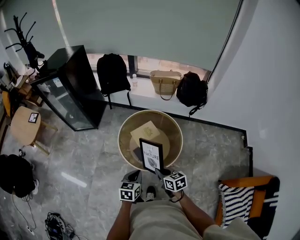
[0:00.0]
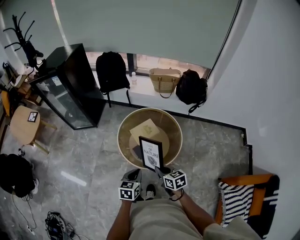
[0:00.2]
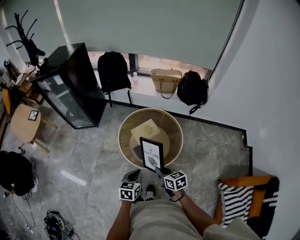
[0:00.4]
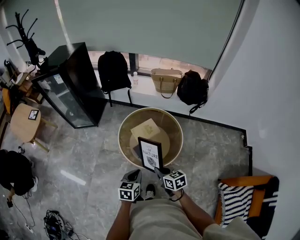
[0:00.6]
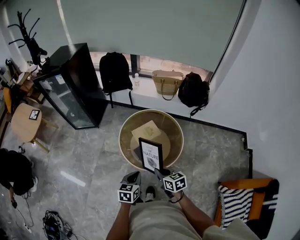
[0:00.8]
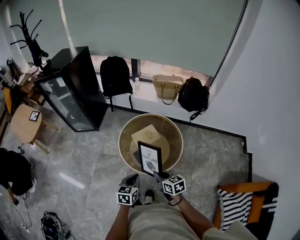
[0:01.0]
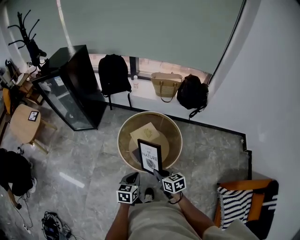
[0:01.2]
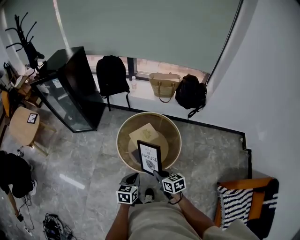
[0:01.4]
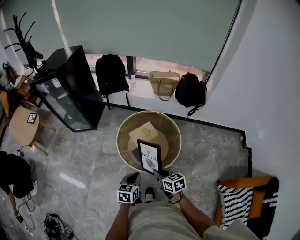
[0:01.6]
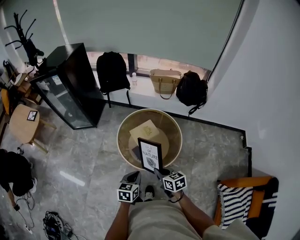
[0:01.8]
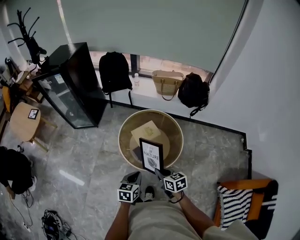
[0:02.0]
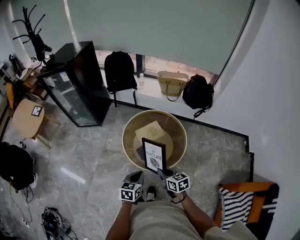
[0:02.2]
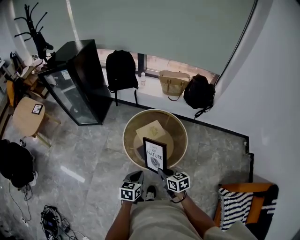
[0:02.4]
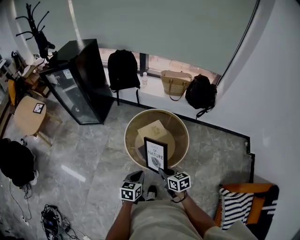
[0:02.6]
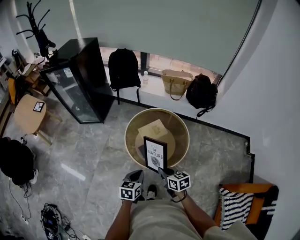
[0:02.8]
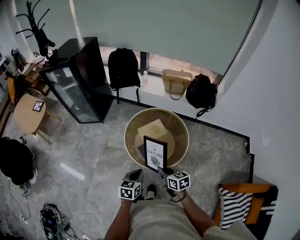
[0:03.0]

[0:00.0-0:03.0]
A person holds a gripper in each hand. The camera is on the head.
0.0 to 3.0 s: The grippers make only small movements.

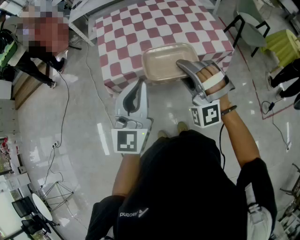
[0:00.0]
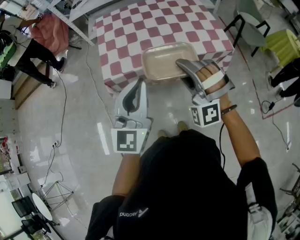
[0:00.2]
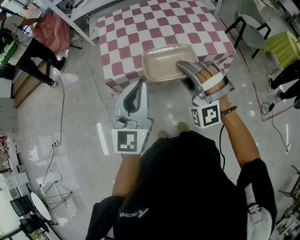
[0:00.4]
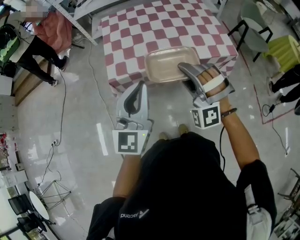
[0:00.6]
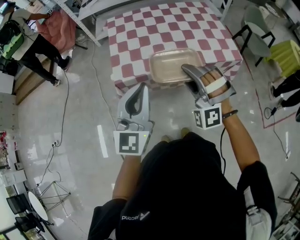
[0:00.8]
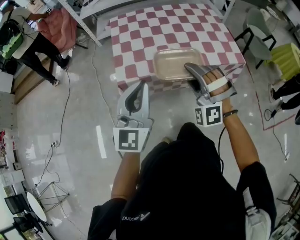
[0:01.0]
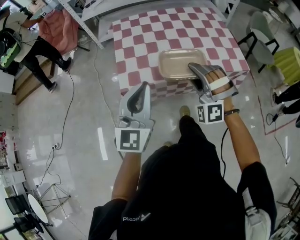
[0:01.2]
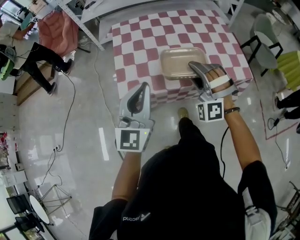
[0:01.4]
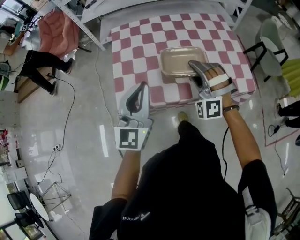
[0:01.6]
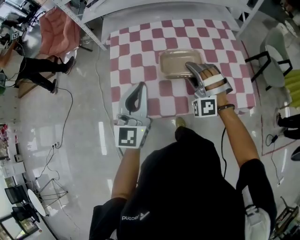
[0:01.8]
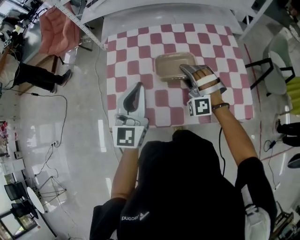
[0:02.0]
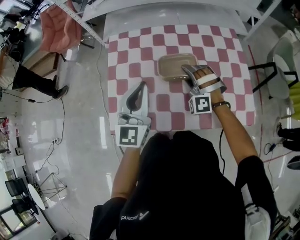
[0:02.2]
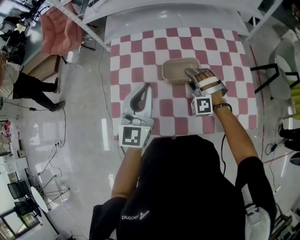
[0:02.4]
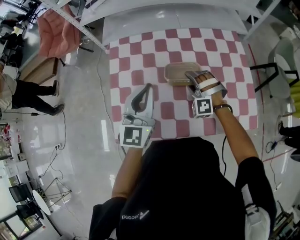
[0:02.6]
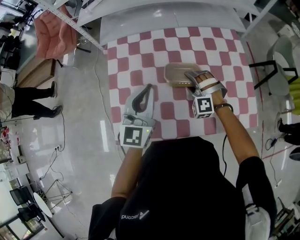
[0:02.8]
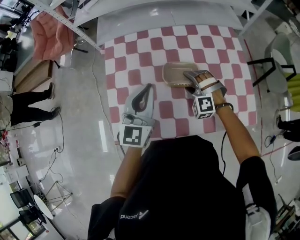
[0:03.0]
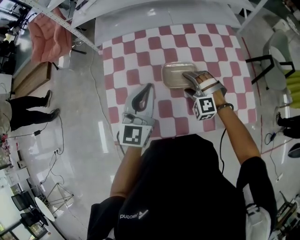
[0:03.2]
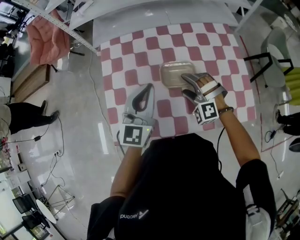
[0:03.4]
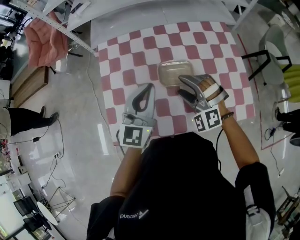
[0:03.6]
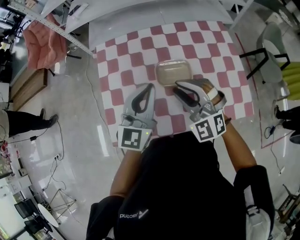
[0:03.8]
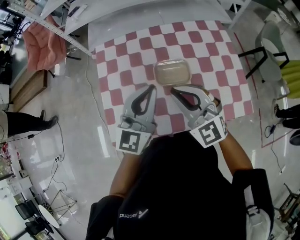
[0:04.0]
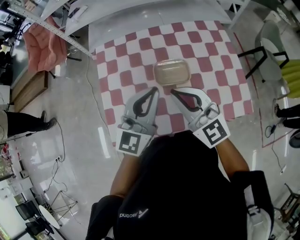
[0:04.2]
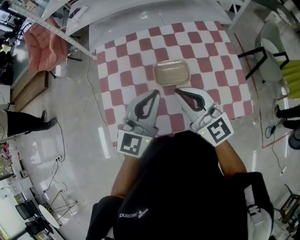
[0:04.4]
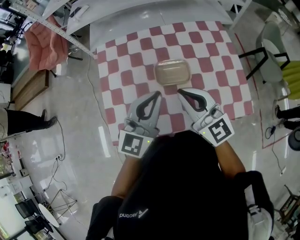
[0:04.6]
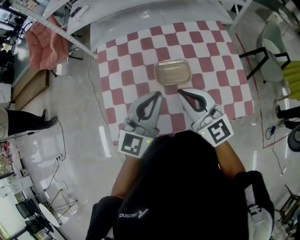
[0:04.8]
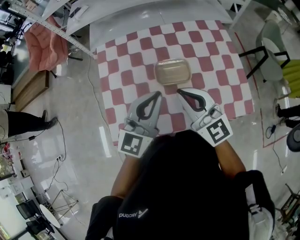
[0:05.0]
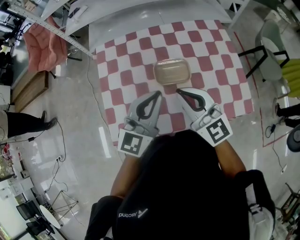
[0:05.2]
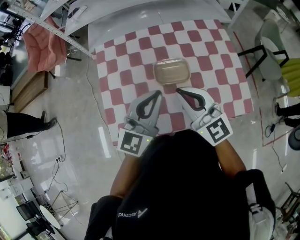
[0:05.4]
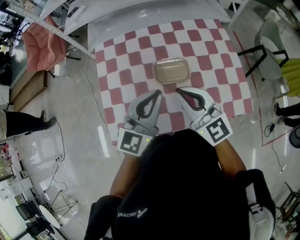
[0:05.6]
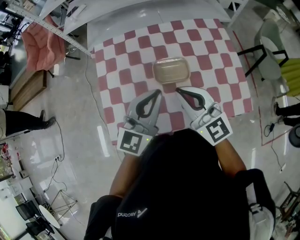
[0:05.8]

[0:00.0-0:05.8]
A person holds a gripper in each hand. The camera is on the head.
0.0 to 1.4 s: The right gripper heads forward, covering about 15 cm. The left gripper shifts approximately 15 cm forward and to the left.
1.4 to 2.8 s: The left gripper heads forward, covering about 30 cm, while the right gripper is displaced forward and downward by about 35 cm, and turns by roughly 30 degrees.
2.8 to 4.4 s: The left gripper goes approximately 10 cm to the right and backward, while the right gripper travels upward and backward by approximately 25 cm, rotates around the line of its fingers by roughly 70 degrees, clockwise from behind, and closes its fingers.
4.4 to 5.8 s: The two grippers keep their place.

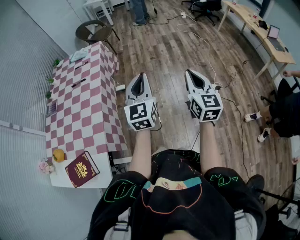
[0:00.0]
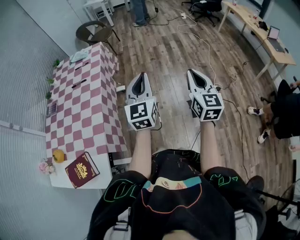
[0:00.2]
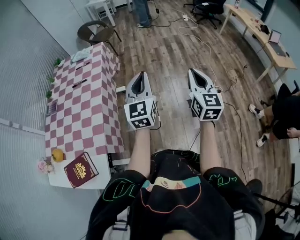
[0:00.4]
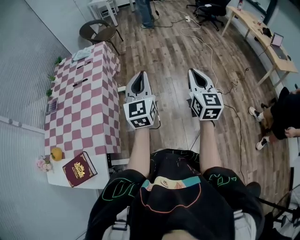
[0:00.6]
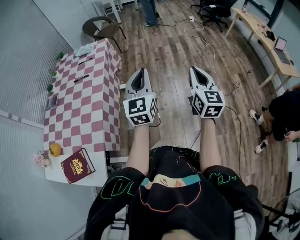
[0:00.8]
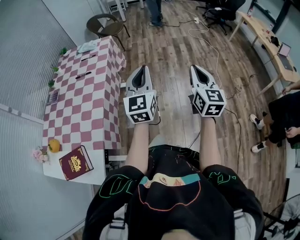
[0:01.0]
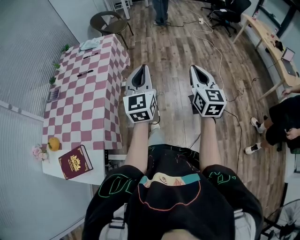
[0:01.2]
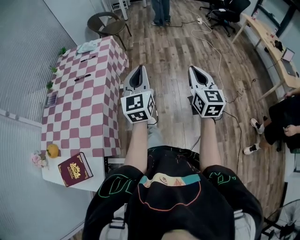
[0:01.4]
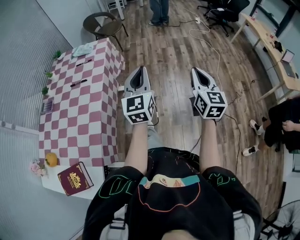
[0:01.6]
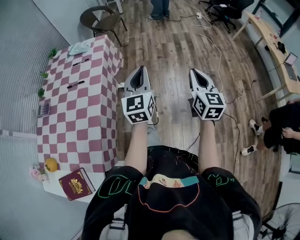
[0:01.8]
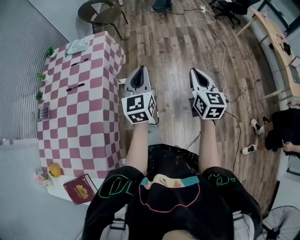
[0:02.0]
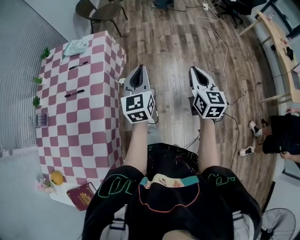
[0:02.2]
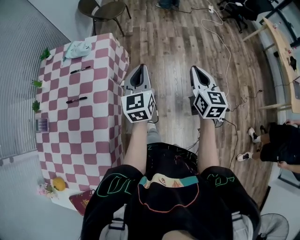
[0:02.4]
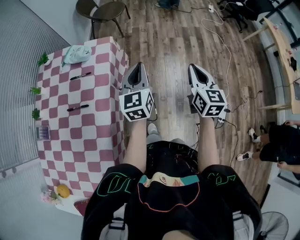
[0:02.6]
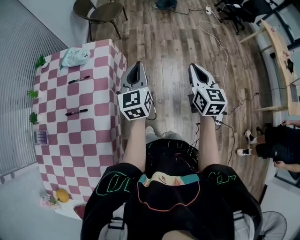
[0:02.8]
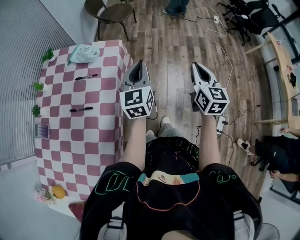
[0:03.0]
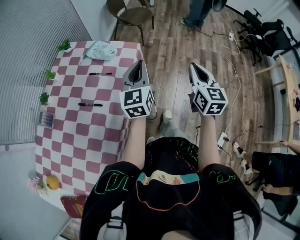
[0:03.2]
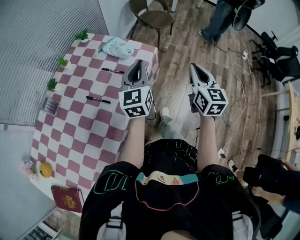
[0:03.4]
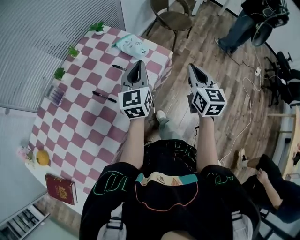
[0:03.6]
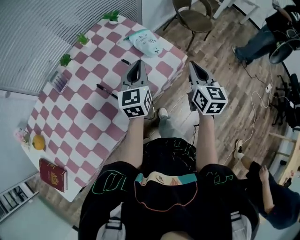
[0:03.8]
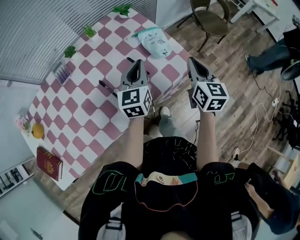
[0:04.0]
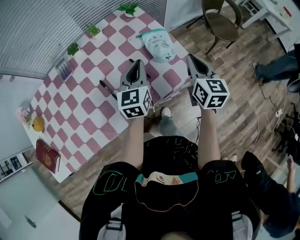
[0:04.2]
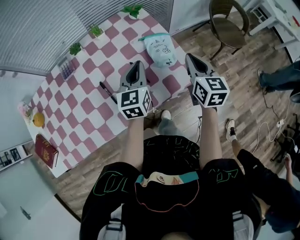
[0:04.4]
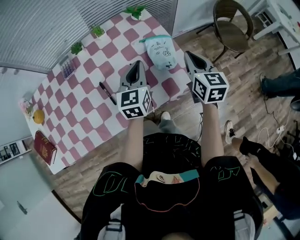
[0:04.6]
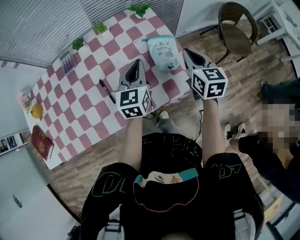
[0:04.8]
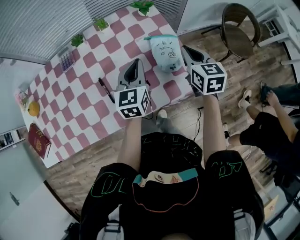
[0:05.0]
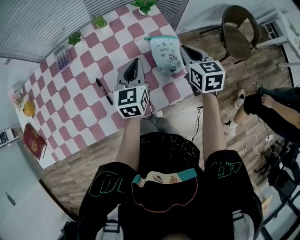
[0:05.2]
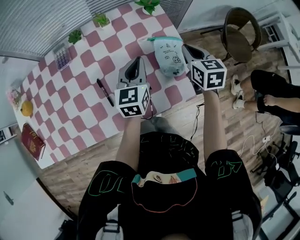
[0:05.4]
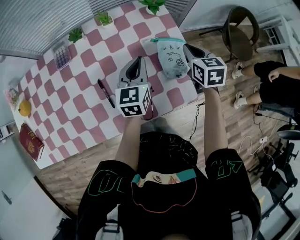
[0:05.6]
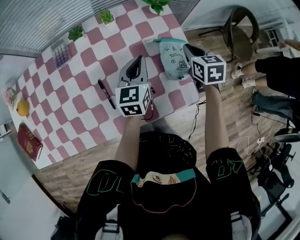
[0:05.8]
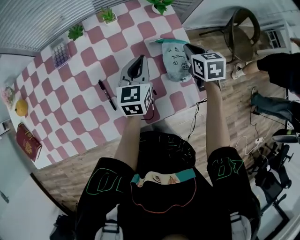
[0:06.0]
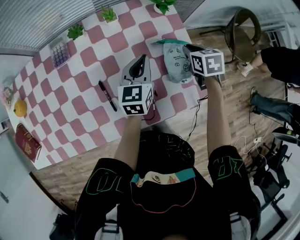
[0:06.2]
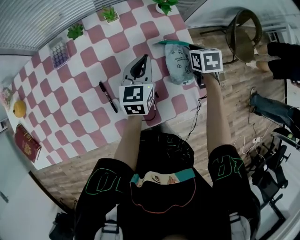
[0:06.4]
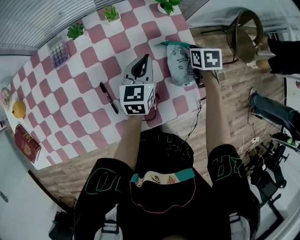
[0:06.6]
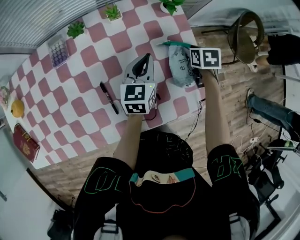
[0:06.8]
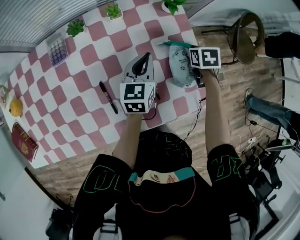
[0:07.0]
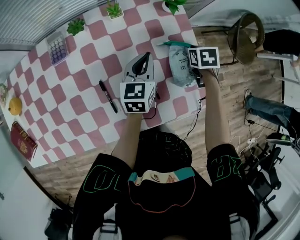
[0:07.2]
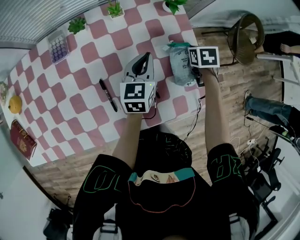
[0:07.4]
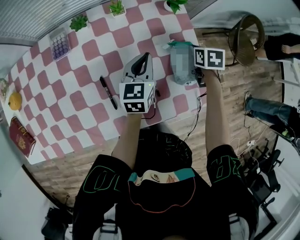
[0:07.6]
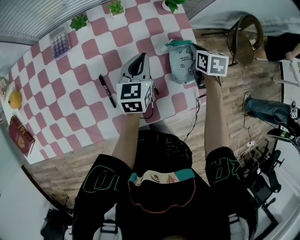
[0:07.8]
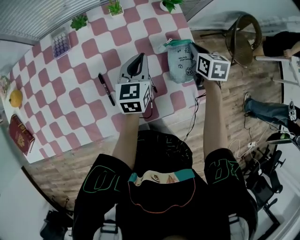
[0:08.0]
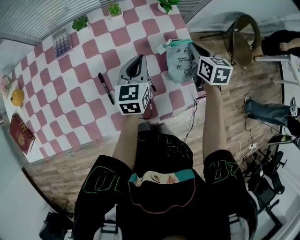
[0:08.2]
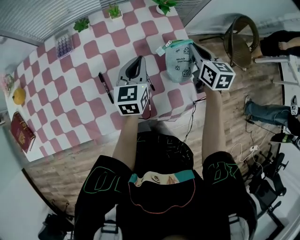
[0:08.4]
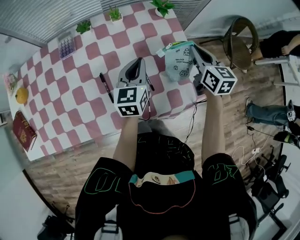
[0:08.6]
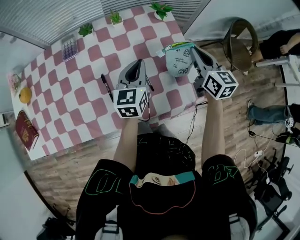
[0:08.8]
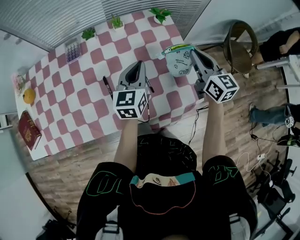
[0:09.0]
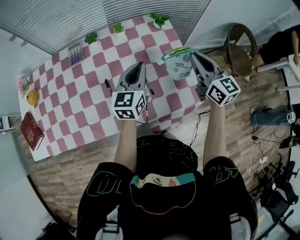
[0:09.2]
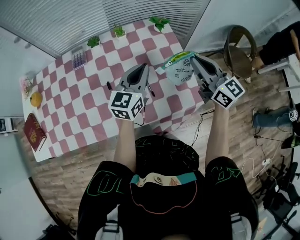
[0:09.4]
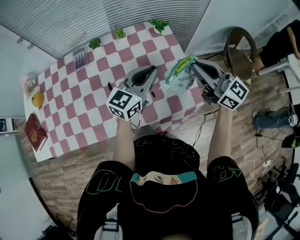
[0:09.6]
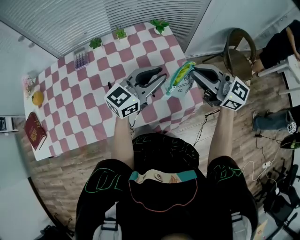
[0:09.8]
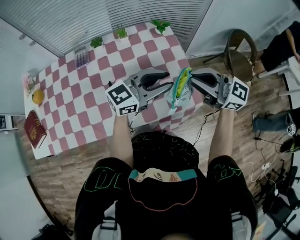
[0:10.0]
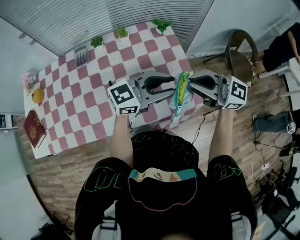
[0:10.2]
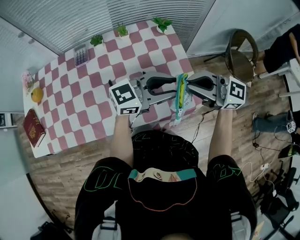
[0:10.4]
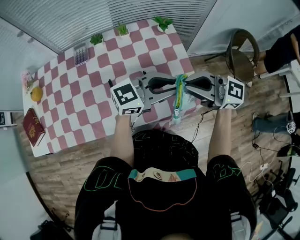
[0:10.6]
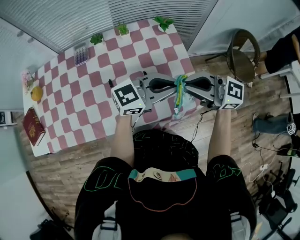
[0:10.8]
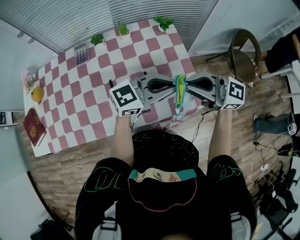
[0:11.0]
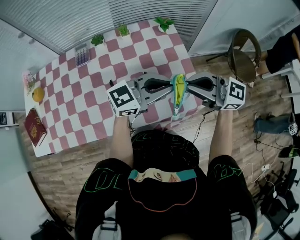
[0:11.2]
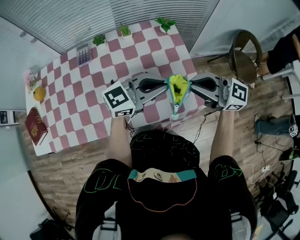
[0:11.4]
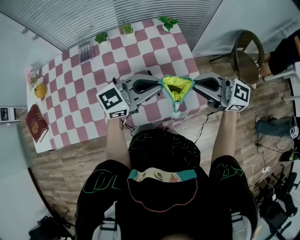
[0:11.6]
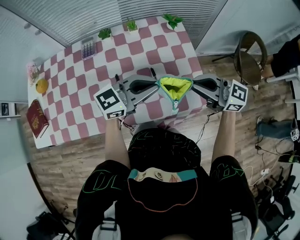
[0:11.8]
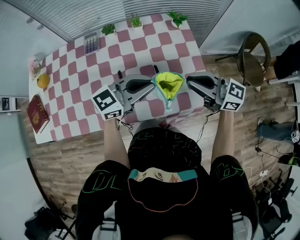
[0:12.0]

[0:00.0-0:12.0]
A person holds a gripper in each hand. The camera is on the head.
0.0 to 1.6 s: Both grippers move forward, some 15 cm.
1.6 to 3.0 s: The left gripper moves forward and to the left, roughly 35 cm, while the right gripper travels forward by about 35 cm.
3.0 to 4.4 s: The right gripper changes place by about 50 cm, and swivels approximately 60 degrees. Meanwhile the left gripper moves about 30 cm, and rotates roughly 50 degrees.
4.4 to 6.0 s: The right gripper goes roughly 20 cm forward and downward, and rotates about 30 degrees, while the left gripper travels forward and downward by some 10 cm.
6.0 to 7.6 s: The right gripper travels downward by some 5 cm, and opens, then closes once more.
7.6 to 9.0 s: The right gripper goes some 20 cm upward and backward, and tips its fingers upward by some 50 degrees, while the left gripper goes roughly 10 cm upward and backward.
9.0 to 10.4 s: The left gripper moves some 20 cm, turns by approximately 60 degrees, and opens up, while the right gripper changes place by roughly 15 cm, and turns by approximately 60 degrees.
10.4 to 12.0 s: The left gripper shifts by some 10 cm, and closes up. The right gripper is displaced downward by approximately 5 cm.

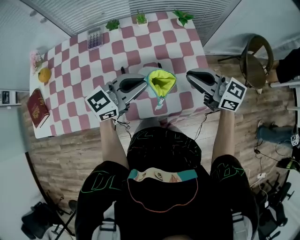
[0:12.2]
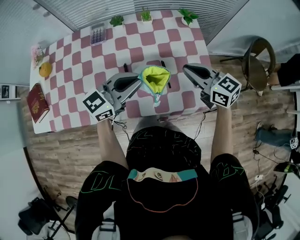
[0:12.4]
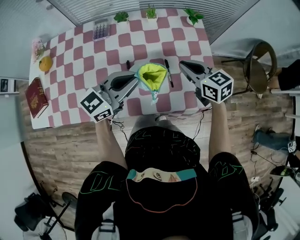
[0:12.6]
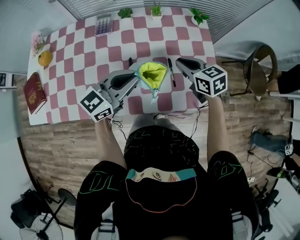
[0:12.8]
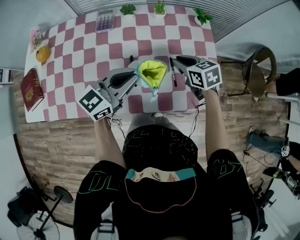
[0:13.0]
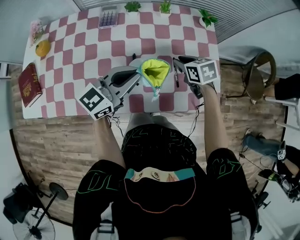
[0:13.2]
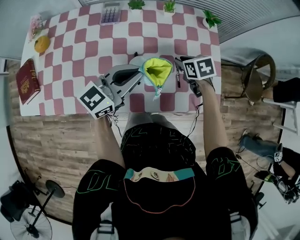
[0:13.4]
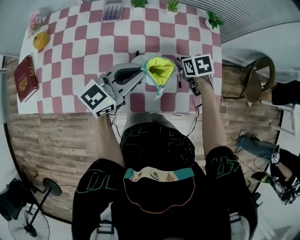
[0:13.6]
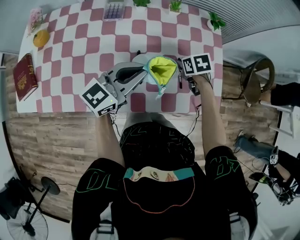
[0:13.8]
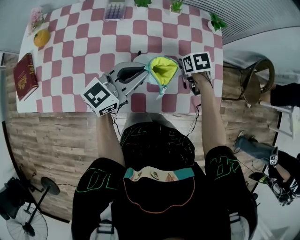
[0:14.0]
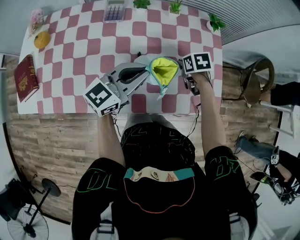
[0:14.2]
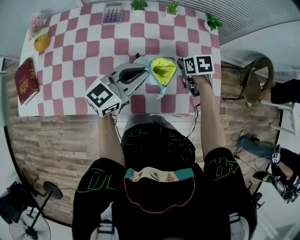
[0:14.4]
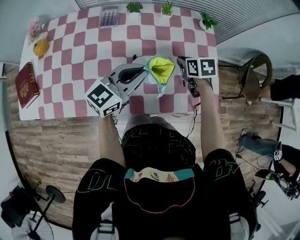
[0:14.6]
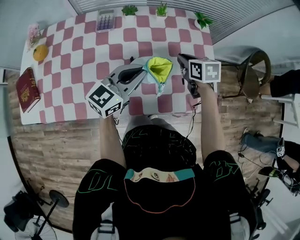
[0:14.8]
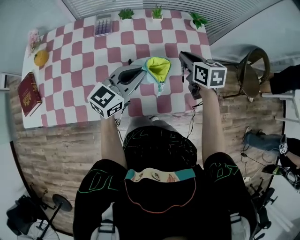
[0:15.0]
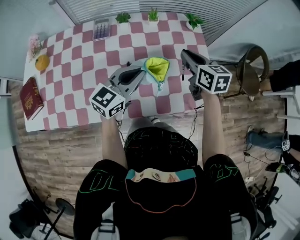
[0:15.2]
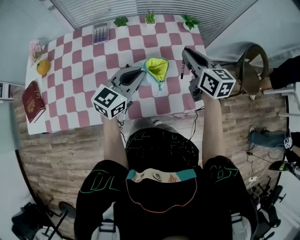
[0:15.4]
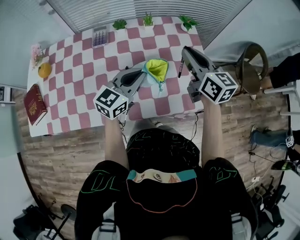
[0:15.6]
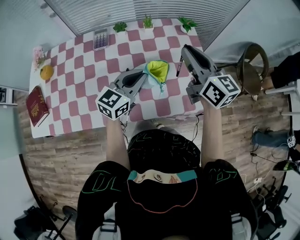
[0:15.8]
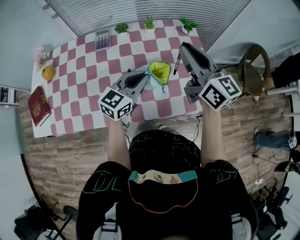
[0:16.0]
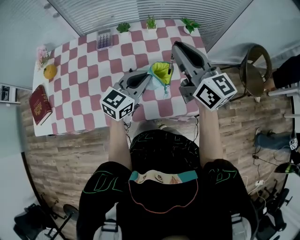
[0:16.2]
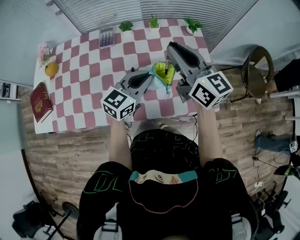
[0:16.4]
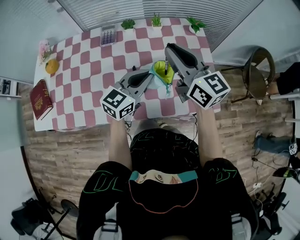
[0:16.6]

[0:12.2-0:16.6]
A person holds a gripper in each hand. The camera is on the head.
12.2 to 13.6 s: The left gripper moves some 10 cm; the right gripper heads downward, covering some 20 cm, tips its fingers downward by roughly 60 degrees, and opens.
13.6 to 15.2 s: The right gripper heads upward, covering some 15 cm, and points its fingers approximately 40 degrees further upward.
15.2 to 16.6 s: The right gripper heads upward, to the left and backward, covering approximately 15 cm, and swivels roughly 30 degrees.
